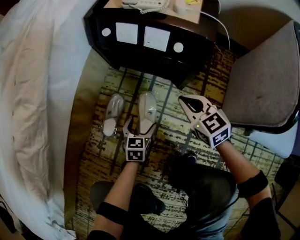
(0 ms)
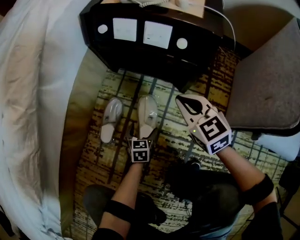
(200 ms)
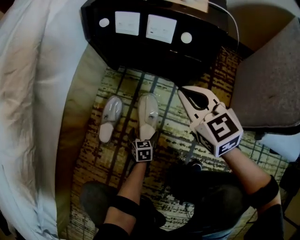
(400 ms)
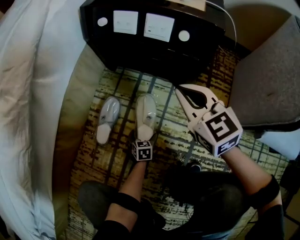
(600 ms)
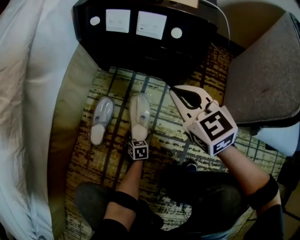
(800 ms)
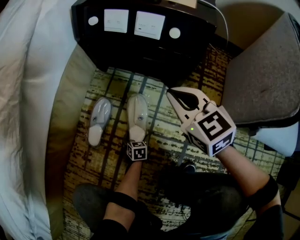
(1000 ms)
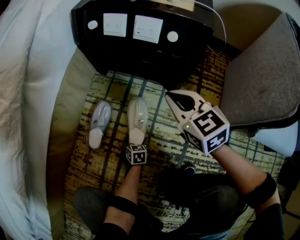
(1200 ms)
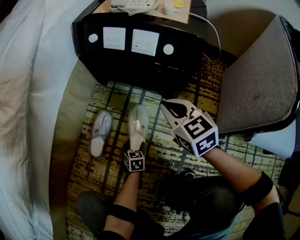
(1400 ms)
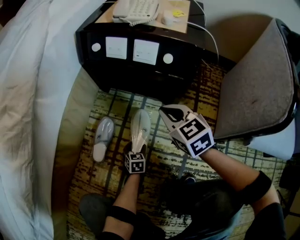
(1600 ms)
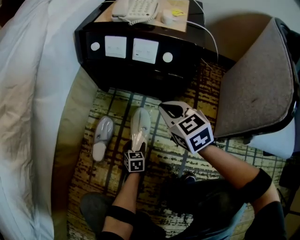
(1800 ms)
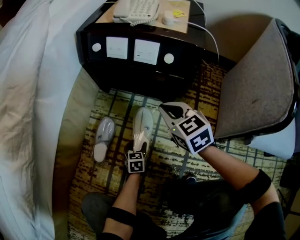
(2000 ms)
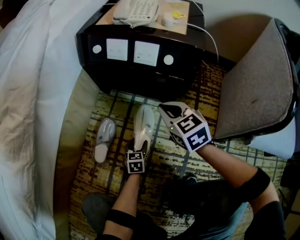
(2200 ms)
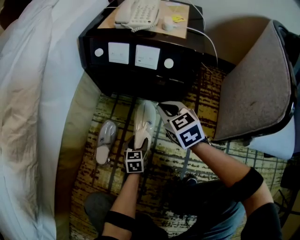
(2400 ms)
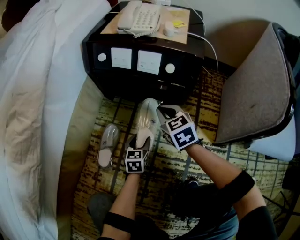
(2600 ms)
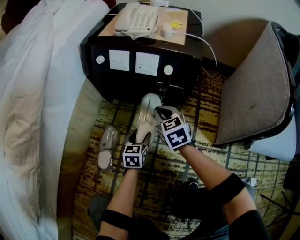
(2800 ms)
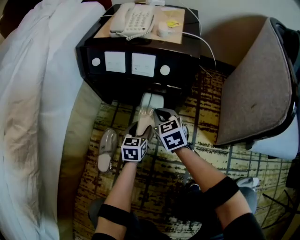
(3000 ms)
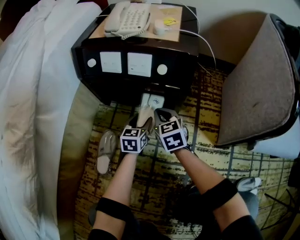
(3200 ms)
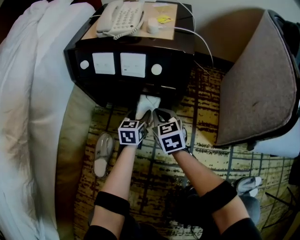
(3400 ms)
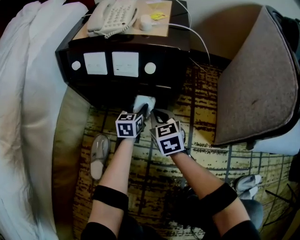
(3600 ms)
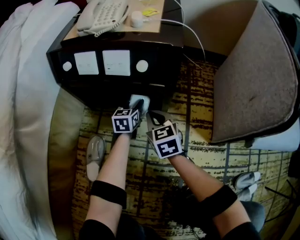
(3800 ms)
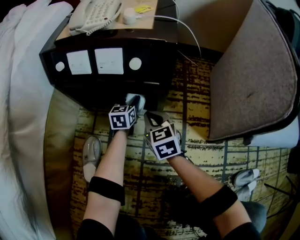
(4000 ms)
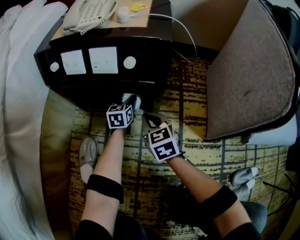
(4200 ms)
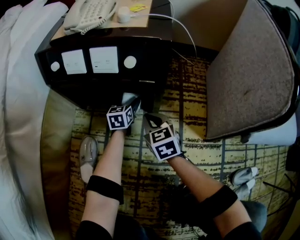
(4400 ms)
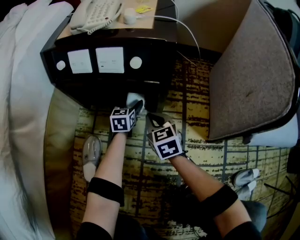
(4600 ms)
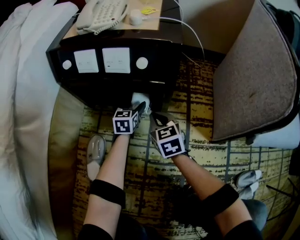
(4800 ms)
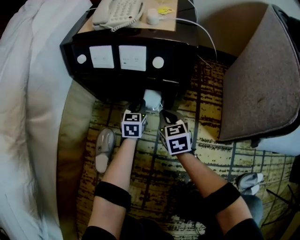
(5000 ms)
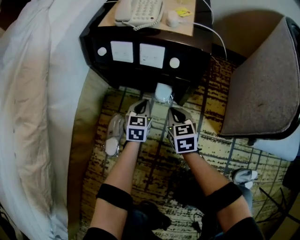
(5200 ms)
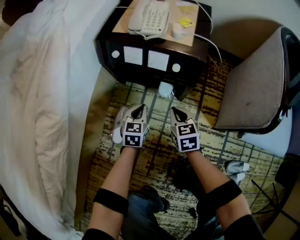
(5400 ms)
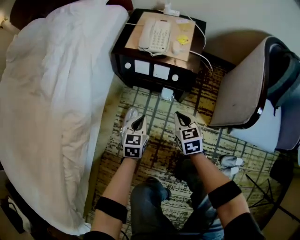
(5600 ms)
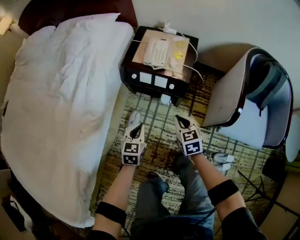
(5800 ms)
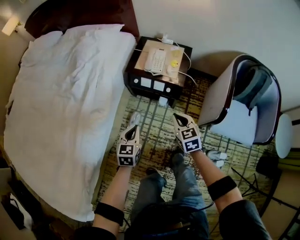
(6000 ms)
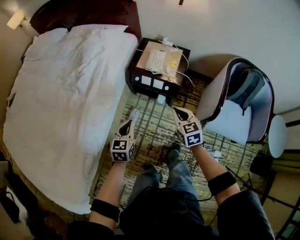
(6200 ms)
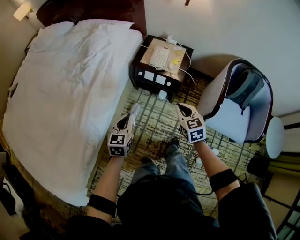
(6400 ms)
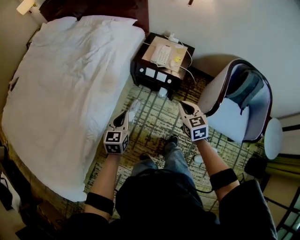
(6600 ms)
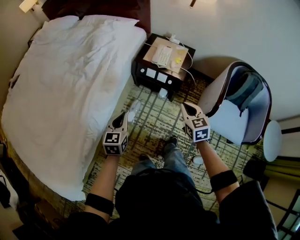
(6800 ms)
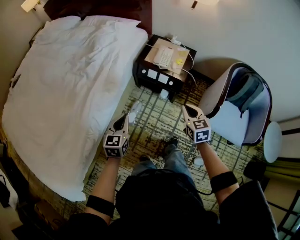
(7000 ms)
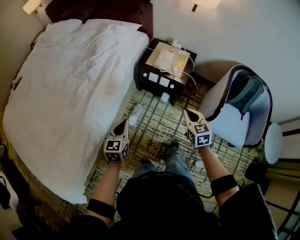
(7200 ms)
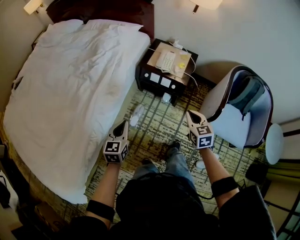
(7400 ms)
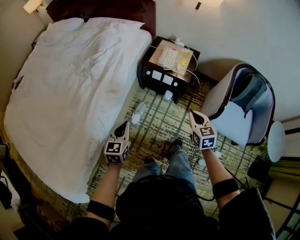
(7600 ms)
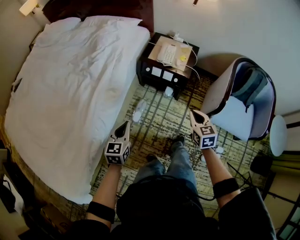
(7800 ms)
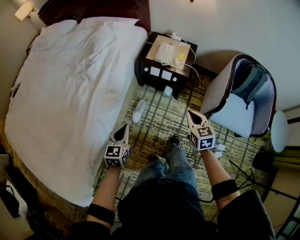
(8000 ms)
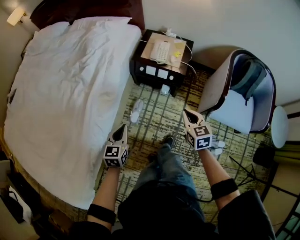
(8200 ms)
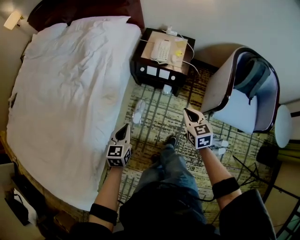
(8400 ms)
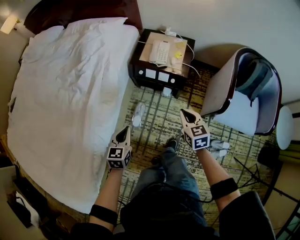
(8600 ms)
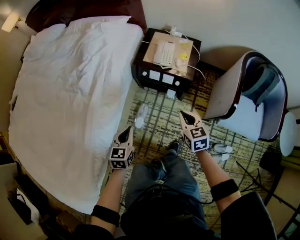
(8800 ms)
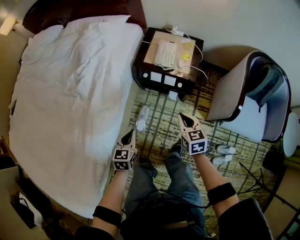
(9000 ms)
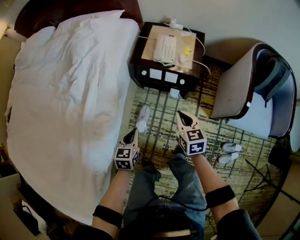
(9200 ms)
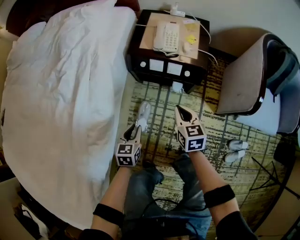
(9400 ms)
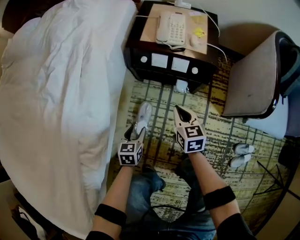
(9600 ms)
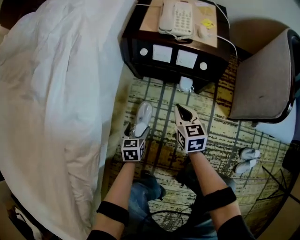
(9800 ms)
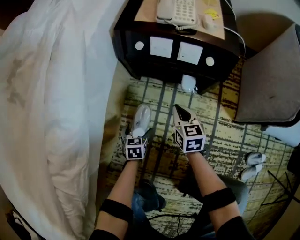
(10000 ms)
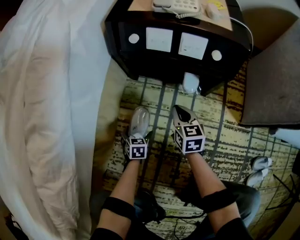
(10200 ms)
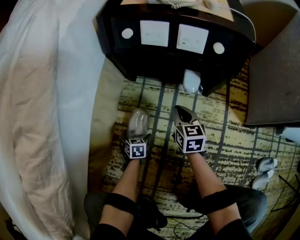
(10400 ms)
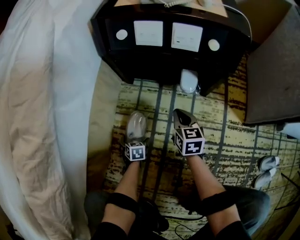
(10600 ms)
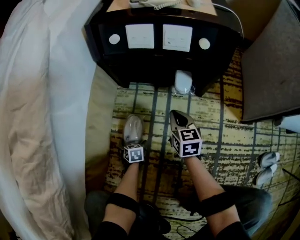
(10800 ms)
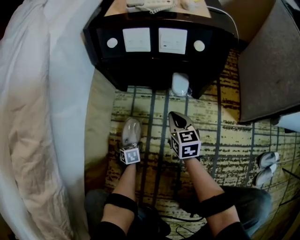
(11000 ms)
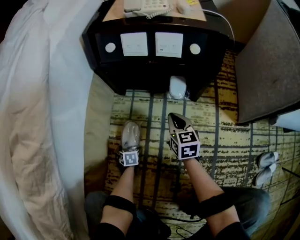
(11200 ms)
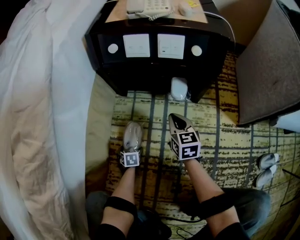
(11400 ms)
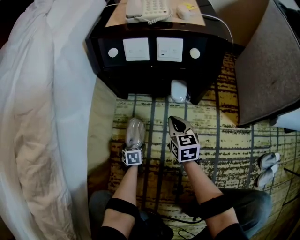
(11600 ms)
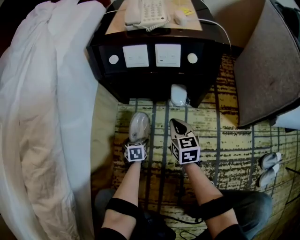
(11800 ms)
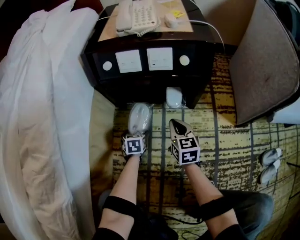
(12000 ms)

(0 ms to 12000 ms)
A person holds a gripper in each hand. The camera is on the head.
0 ms - 1600 ms: The left gripper heads downward, covering roughly 15 cm.
1600 ms - 3000 ms: The left gripper is displaced upward and forward by some 20 cm, and swivels some 20 degrees. Meanwhile the right gripper goes some 10 cm downward and forward.
3000 ms - 4400 ms: The left gripper is displaced forward by about 15 cm, and opens up, while the right gripper heads to the right and downward, covering approximately 10 cm.
4400 ms - 6000 ms: The right gripper travels upward by about 60 cm. The left gripper is displaced upward and backward by some 80 cm, and closes up.
6000 ms - 7600 ms: The left gripper is displaced upward, backward and to the left by some 20 cm; the right gripper travels backward and upward by about 15 cm.
7600 ms - 9000 ms: The right gripper goes some 20 cm forward, downward and to the left; the left gripper heads downward and forward, covering approximately 20 cm.
9000 ms - 10400 ms: Both grippers travel together downward, about 70 cm. The left gripper turns by approximately 20 degrees, and opens its fingers.
10400 ms - 12000 ms: The left gripper heads forward, upward and to the right, covering about 15 cm. Meanwhile the right gripper shifts by about 5 cm.

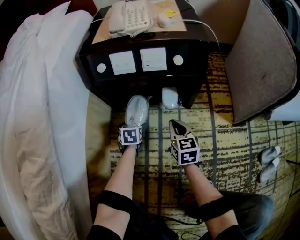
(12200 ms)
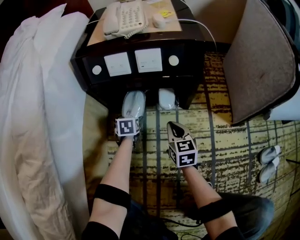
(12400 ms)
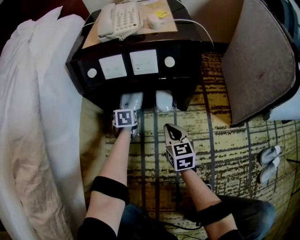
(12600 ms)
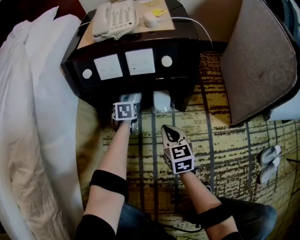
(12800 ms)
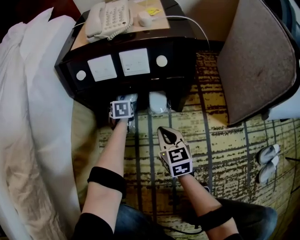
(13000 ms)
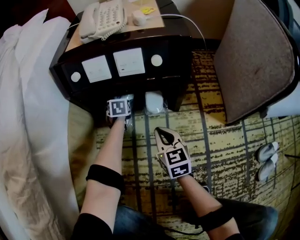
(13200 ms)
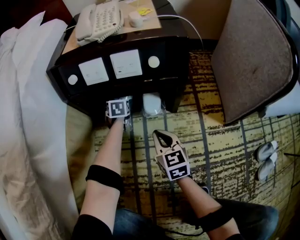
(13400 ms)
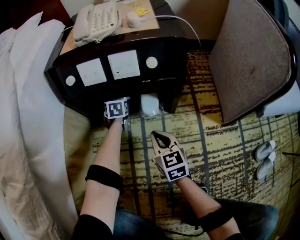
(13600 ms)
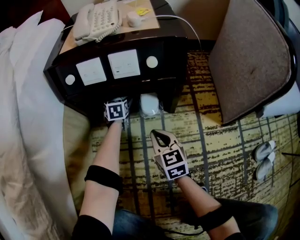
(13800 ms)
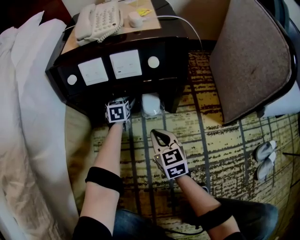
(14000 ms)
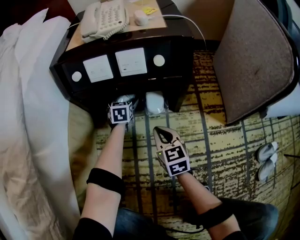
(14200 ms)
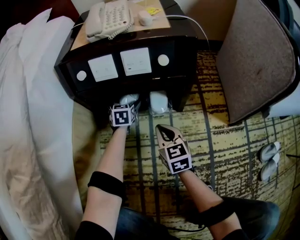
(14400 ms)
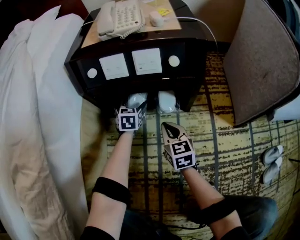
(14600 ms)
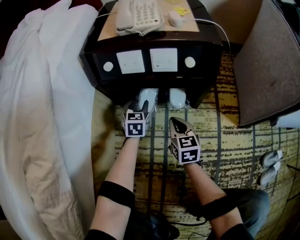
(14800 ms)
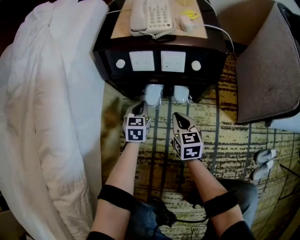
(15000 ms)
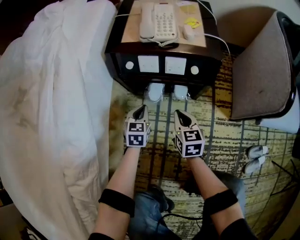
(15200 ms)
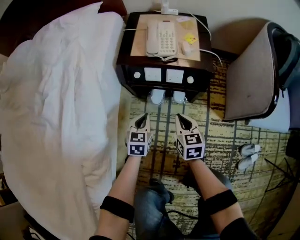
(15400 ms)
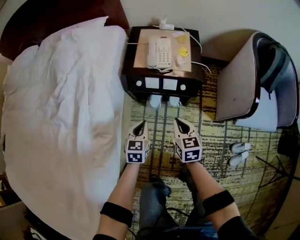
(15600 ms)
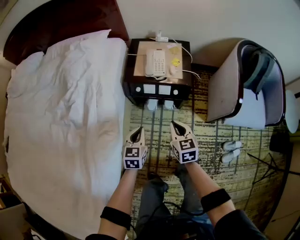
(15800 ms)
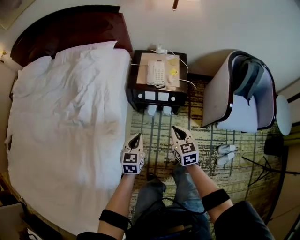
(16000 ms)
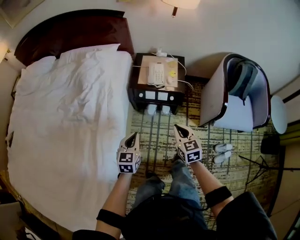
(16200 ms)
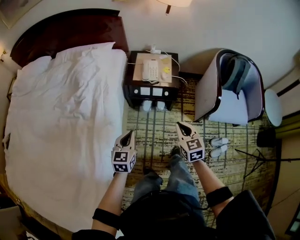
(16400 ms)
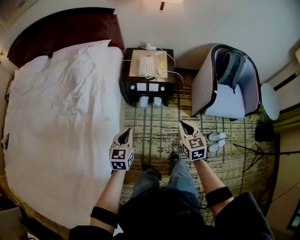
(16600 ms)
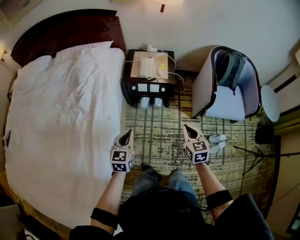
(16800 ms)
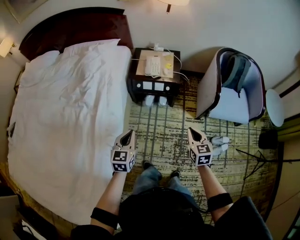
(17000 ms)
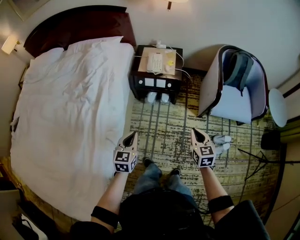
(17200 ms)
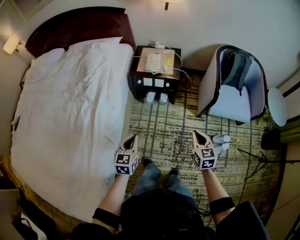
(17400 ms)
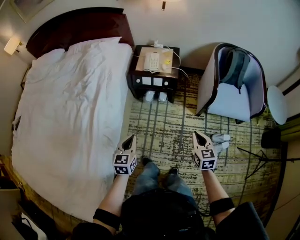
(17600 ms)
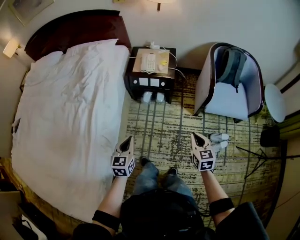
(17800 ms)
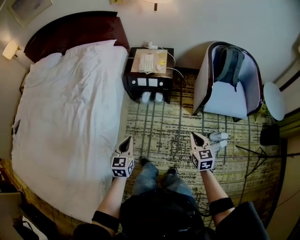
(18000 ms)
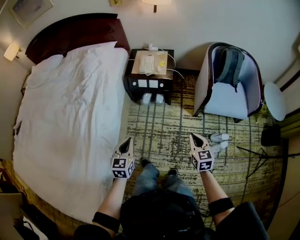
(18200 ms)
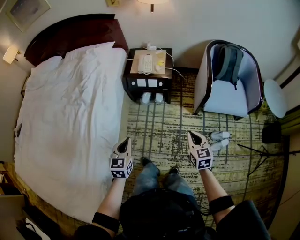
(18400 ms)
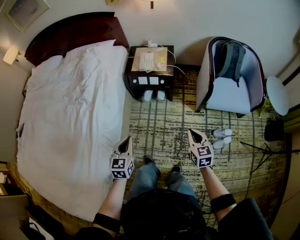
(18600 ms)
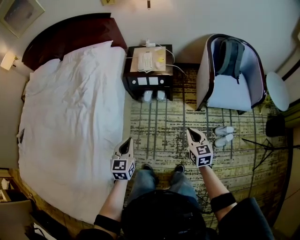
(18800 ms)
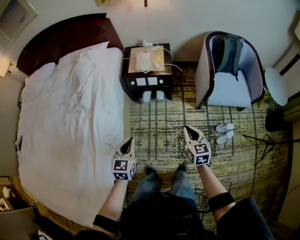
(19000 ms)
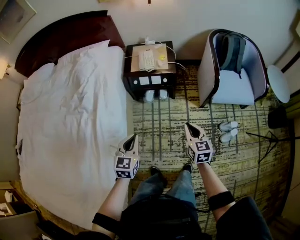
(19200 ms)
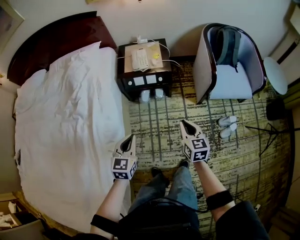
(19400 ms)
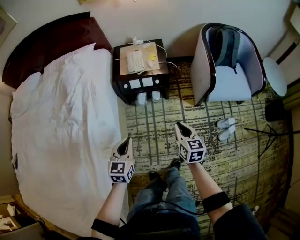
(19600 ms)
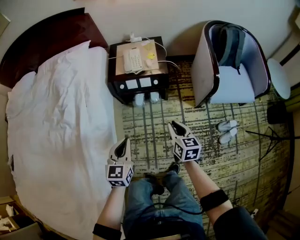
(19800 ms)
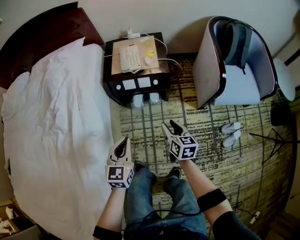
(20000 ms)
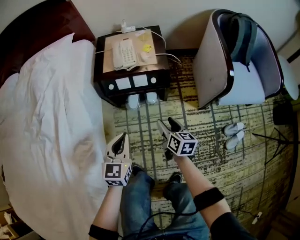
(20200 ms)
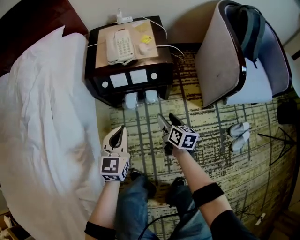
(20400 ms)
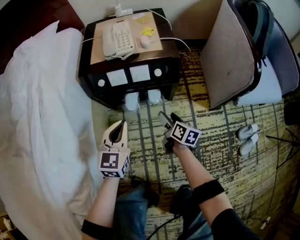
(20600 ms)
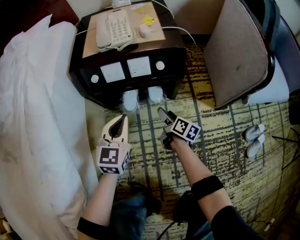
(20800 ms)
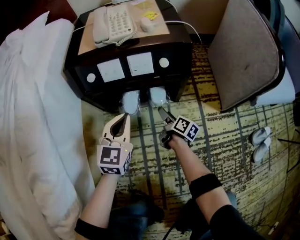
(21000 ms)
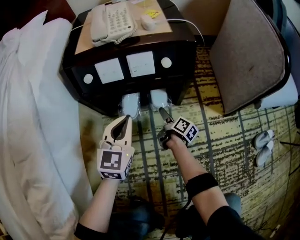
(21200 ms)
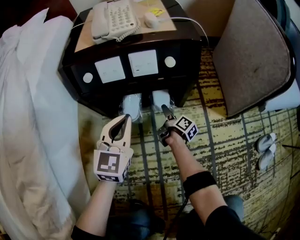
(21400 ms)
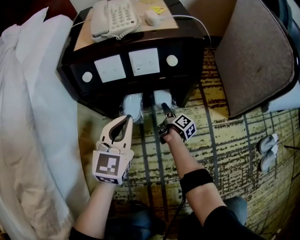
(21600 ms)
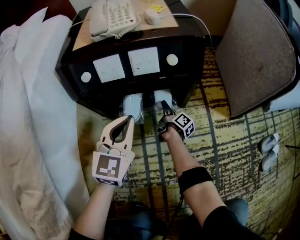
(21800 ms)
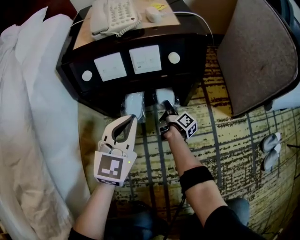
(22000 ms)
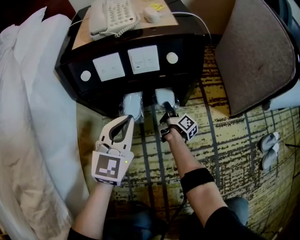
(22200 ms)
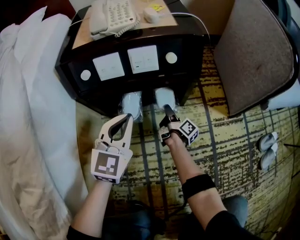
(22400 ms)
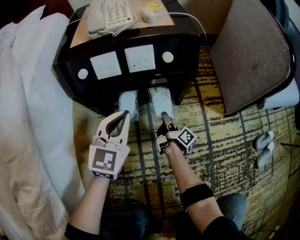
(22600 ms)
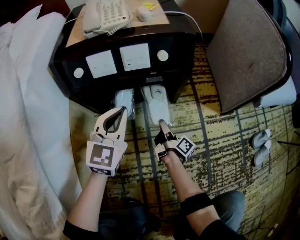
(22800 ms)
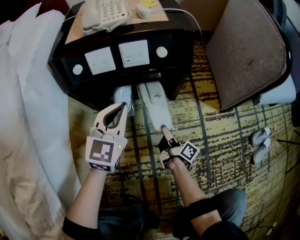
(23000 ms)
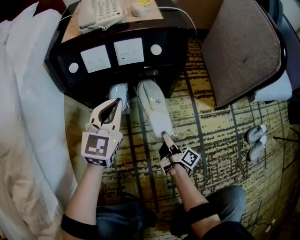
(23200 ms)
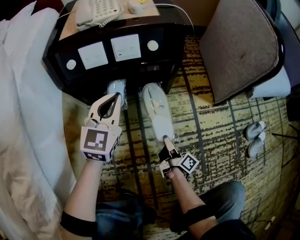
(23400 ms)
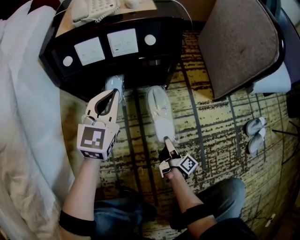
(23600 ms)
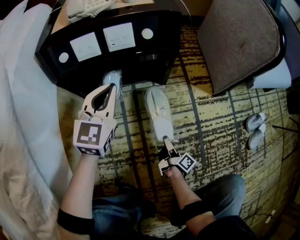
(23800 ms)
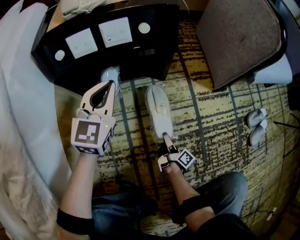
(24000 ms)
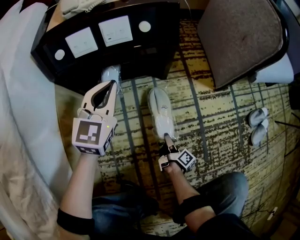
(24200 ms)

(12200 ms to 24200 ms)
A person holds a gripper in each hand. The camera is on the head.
12200 ms - 13800 ms: The left gripper moves forward and to the right, about 20 cm.
13800 ms - 15200 ms: The left gripper goes about 30 cm upward and backward, and closes its fingers, while the right gripper goes some 15 cm upward.
15200 ms - 16600 ms: The grippers both shift upward and backward by approximately 60 cm.
16600 ms - 18200 ms: Both grippers move backward and to the right, roughly 20 cm.
18200 ms - 19800 ms: The right gripper moves forward, to the left and downward, about 25 cm, and swivels about 20 degrees; the left gripper heads forward and downward, covering some 20 cm.
19800 ms - 21200 ms: Both grippers move downward and forward, approximately 60 cm. The right gripper rotates around the line of its fingers by about 50 degrees, clockwise from behind, and opens its fingers.
21200 ms - 22600 ms: The right gripper rotates some 30 degrees, and closes its fingers.
22600 ms - 24200 ms: The right gripper heads backward, covering some 20 cm.
